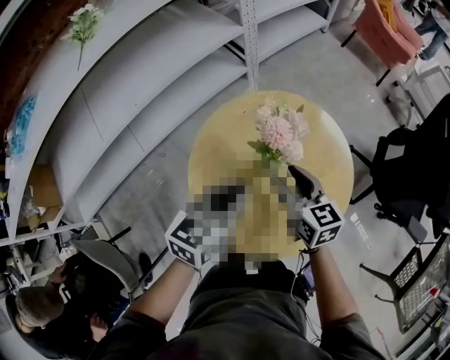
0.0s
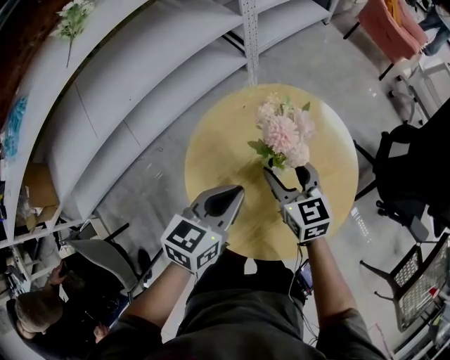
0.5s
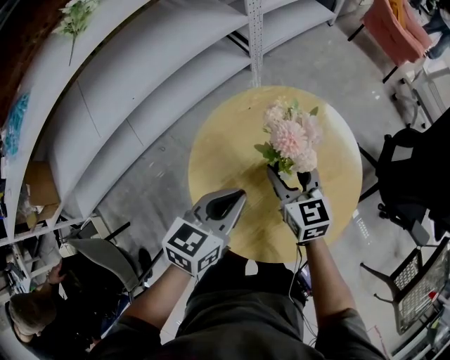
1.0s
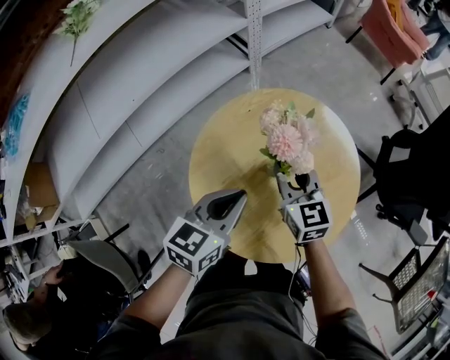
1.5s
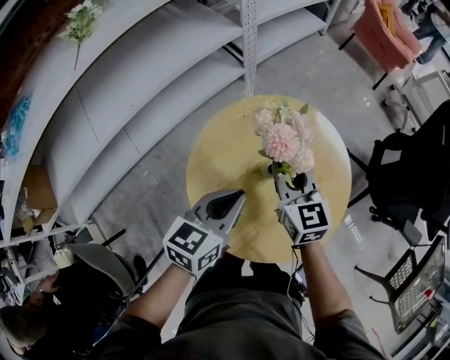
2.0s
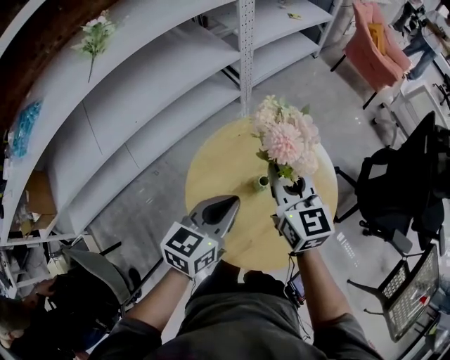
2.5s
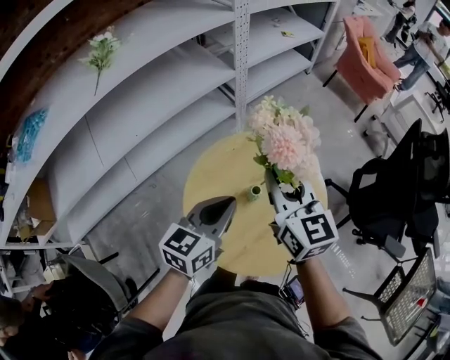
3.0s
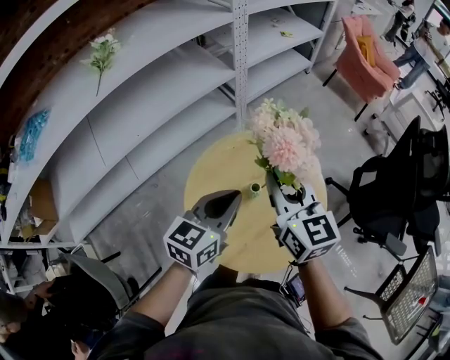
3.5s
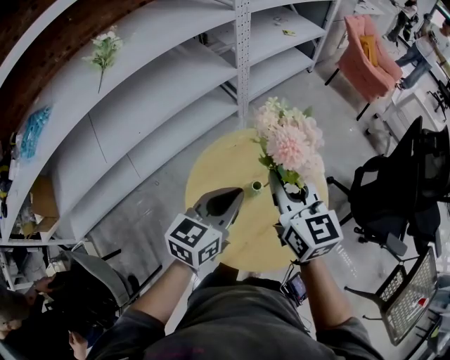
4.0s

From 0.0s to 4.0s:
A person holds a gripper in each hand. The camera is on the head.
From 0.0s to 2.0s: The right gripper changes place by roughly 5 cm, and closes up.
From 2.0s to 4.0s: The left gripper heads upward, covering about 10 cm. Meanwhile the right gripper goes approximately 15 cm upward.

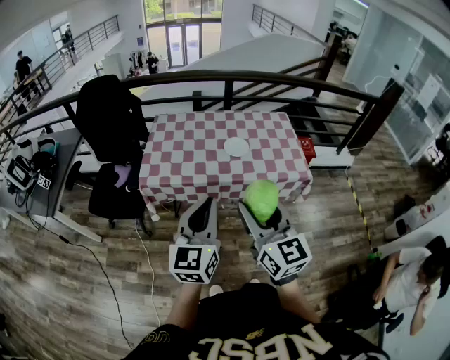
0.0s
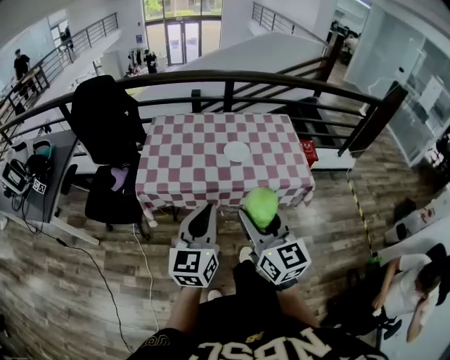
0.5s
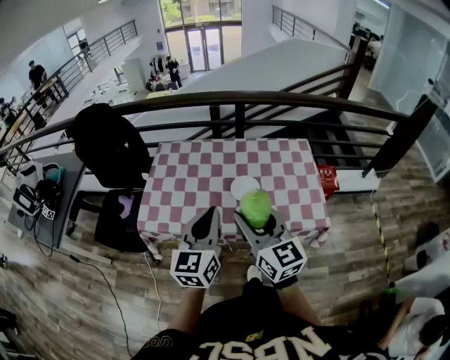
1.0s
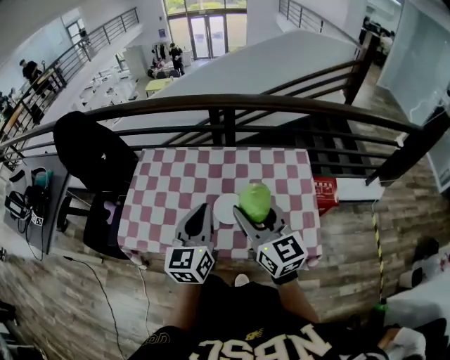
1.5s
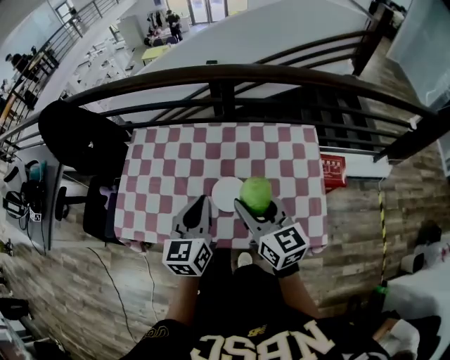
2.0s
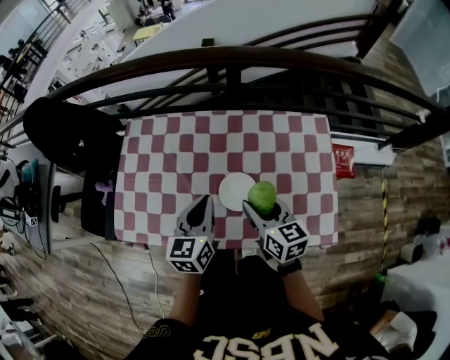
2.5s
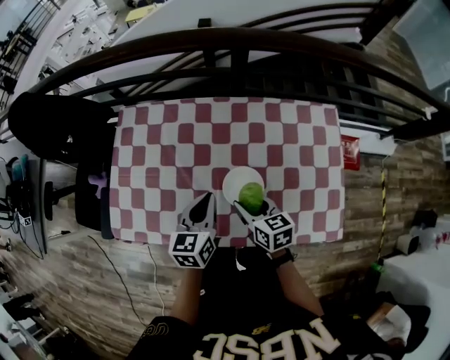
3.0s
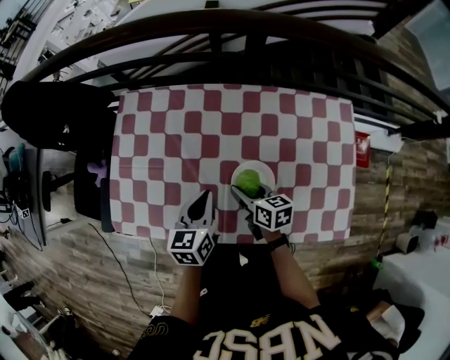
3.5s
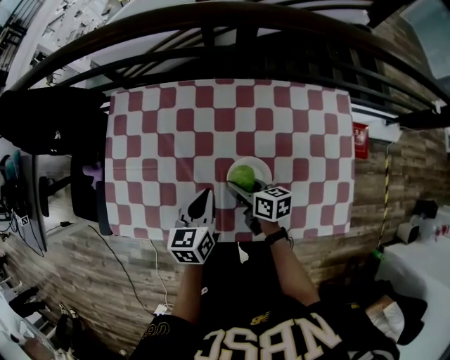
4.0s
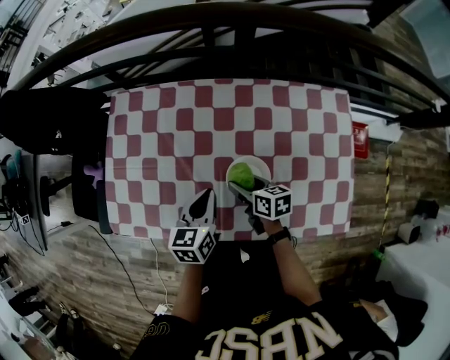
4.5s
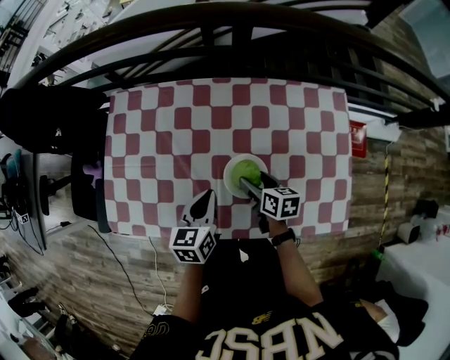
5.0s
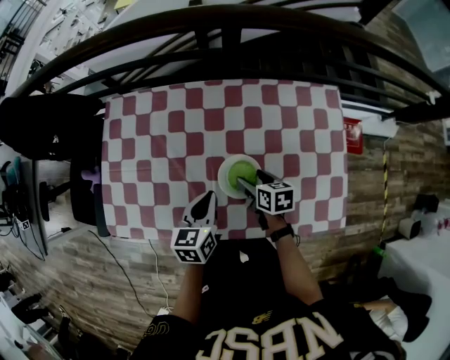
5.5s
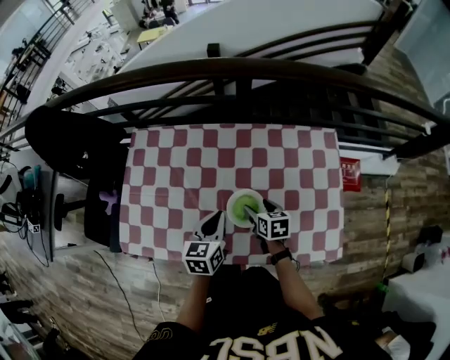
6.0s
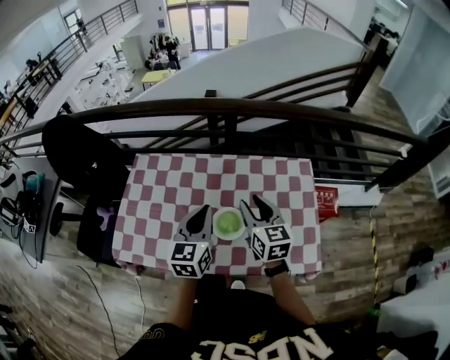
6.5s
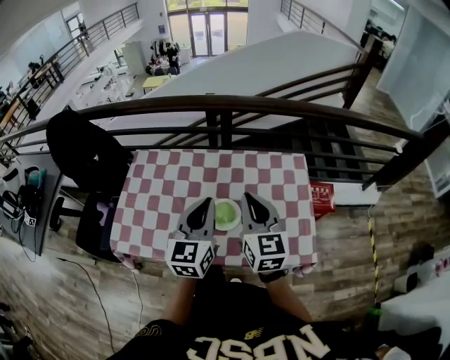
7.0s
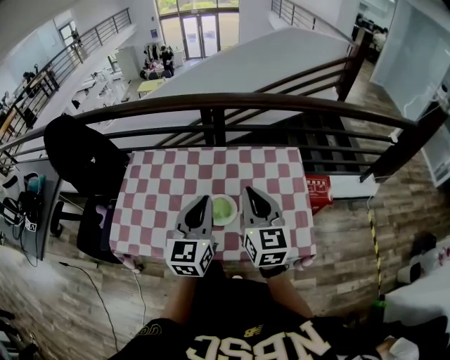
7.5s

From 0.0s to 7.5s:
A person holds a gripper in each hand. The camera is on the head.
From 0.0s to 2.0s: Both grippers are carried forward and to the right, about 50 cm. The left gripper turns by approximately 20 degrees. Meanwhile the right gripper changes its angle by about 20 degrees.
From 2.0s to 4.0s: The right gripper moves downward, roughly 30 cm, and changes its angle by some 40 degrees. The left gripper heads downward, covering approximately 20 cm, and changes its angle by approximately 20 degrees.
From 4.0s to 5.5s: The right gripper is displaced to the right by about 10 cm, and opens up.
From 5.5s to 7.5s: Both grippers move upward, roughly 30 cm. The right gripper points its fingers about 40 degrees further upward, and closes, while the left gripper turns by about 40 degrees.

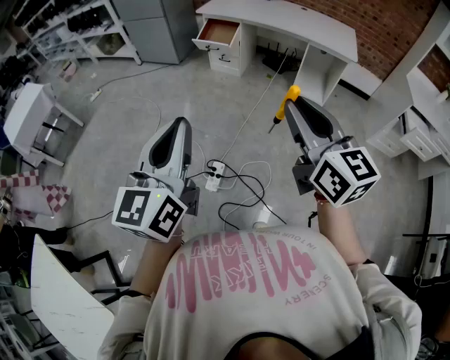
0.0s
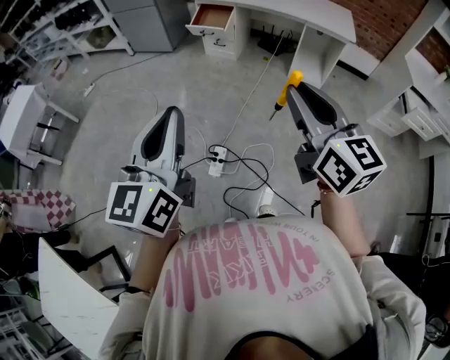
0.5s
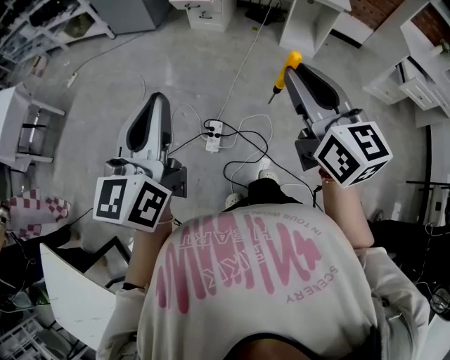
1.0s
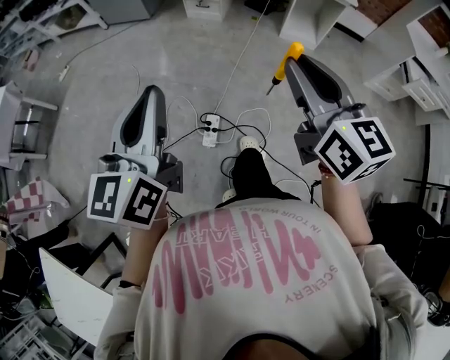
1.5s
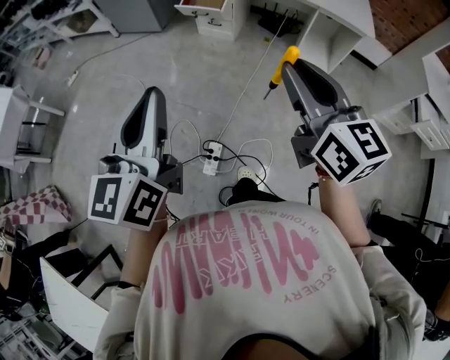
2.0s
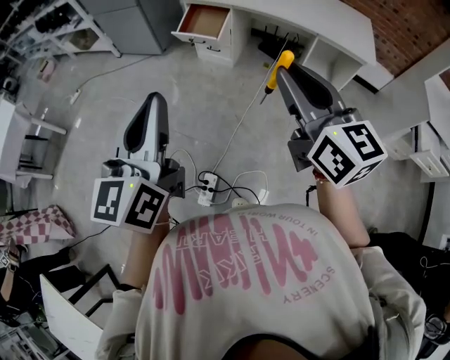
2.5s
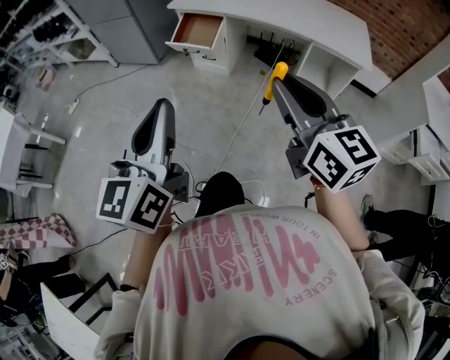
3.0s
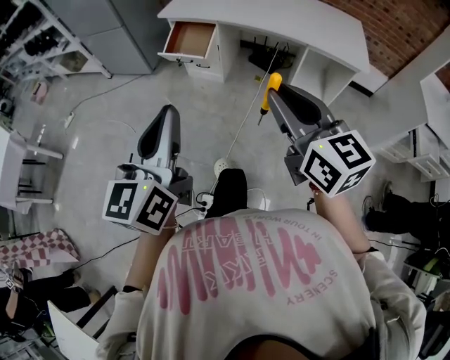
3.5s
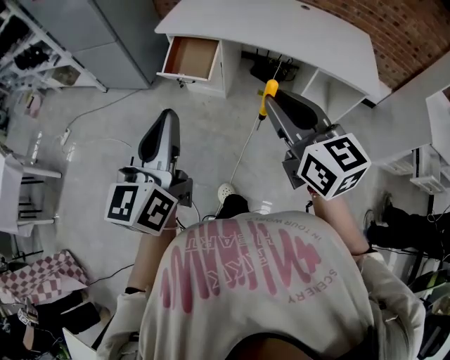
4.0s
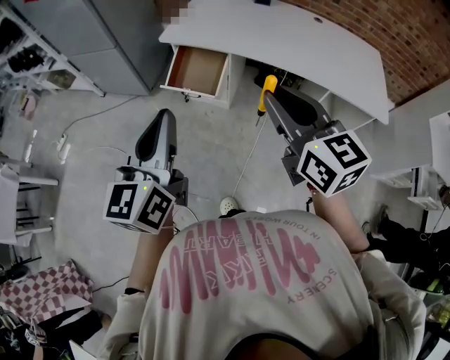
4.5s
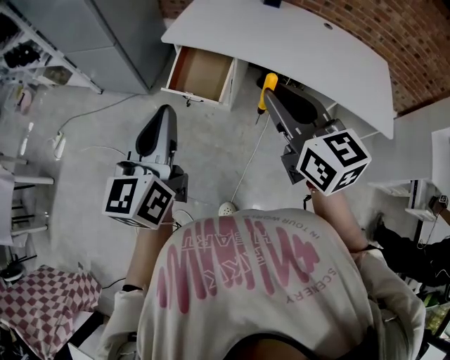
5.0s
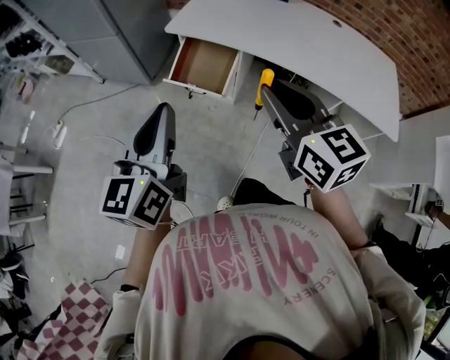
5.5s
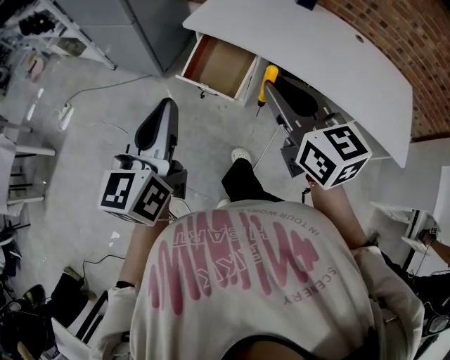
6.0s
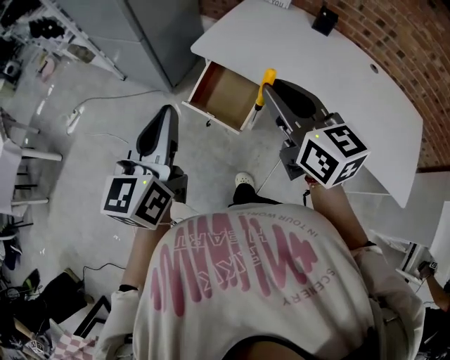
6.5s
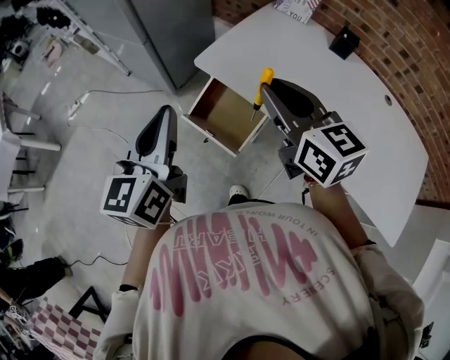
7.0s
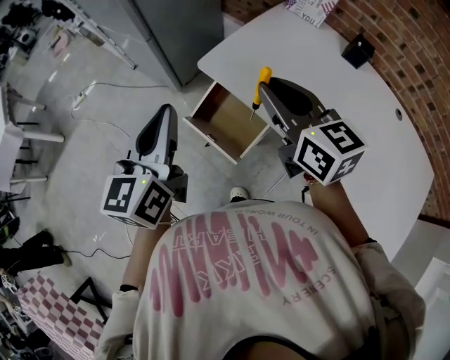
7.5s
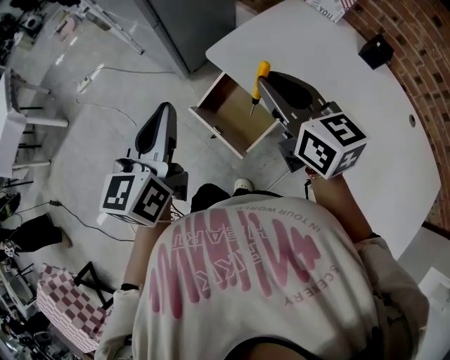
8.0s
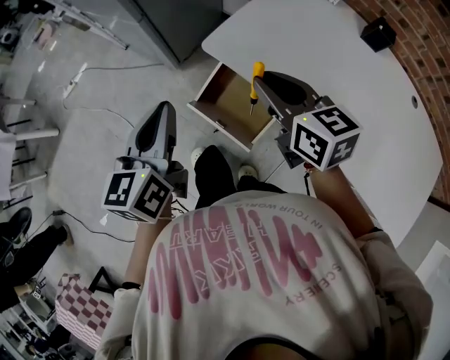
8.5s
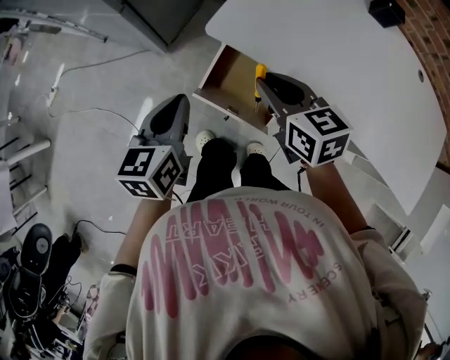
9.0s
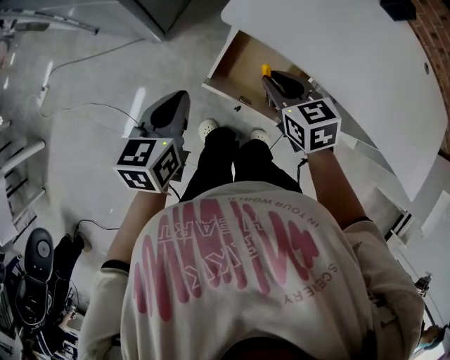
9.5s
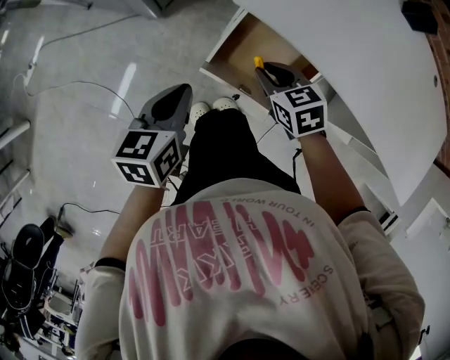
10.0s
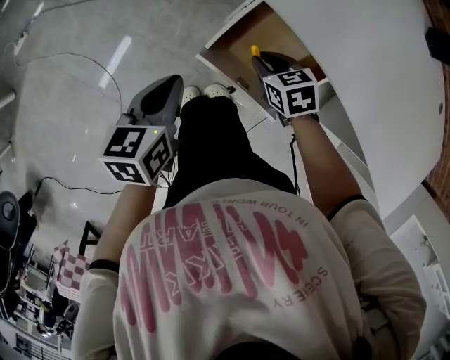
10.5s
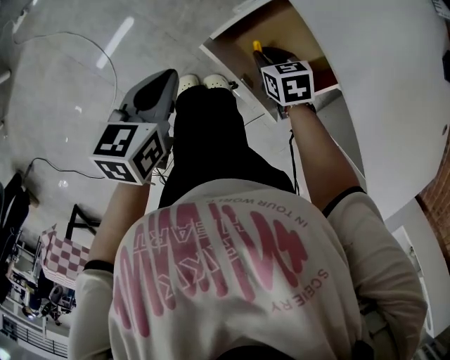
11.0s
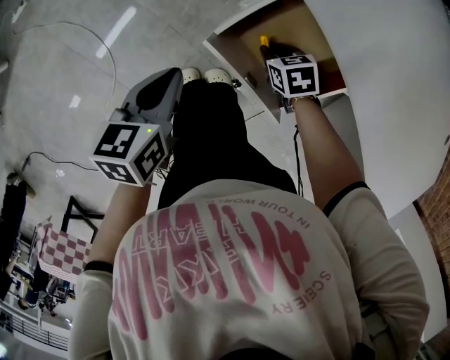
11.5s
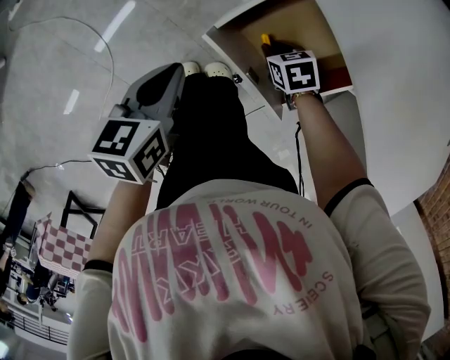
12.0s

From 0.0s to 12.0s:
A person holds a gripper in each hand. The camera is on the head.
From 0.0s to 2.0s: Both grippers move forward, about 20 cm.
From 2.0s to 4.0s: Both grippers travel together forward, about 35 cm.
From 4.0s to 6.0s: Both grippers travel together forward, approximately 25 cm.
From 6.0s to 8.0s: The two grippers go some 30 cm forward. The left gripper swivels about 20 degrees. The right gripper swivels approximately 20 degrees.
From 8.0s to 10.0s: The left gripper goes roughly 30 cm downward and to the left, and turns by about 40 degrees, while the right gripper is displaced downward by approximately 35 cm, and points its fingers approximately 40 degrees further downward.
From 10.0s to 12.0s: The left gripper travels downward by about 10 cm; the right gripper shifts approximately 20 cm downward, and turns by approximately 20 degrees.

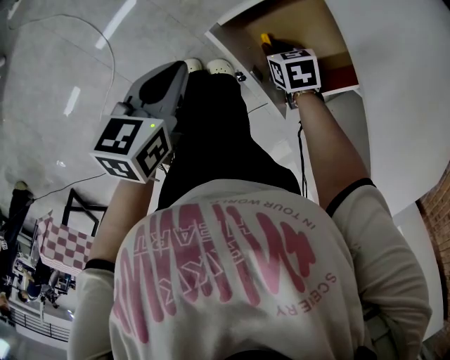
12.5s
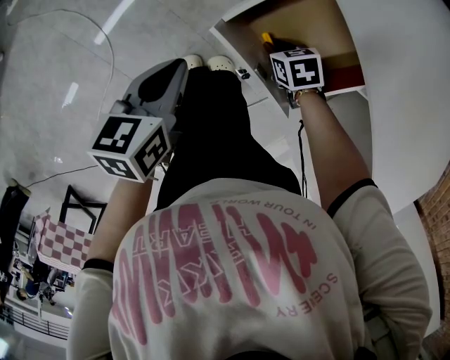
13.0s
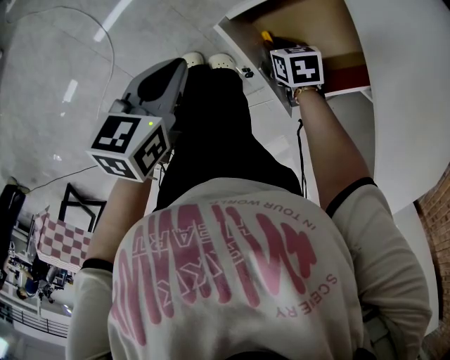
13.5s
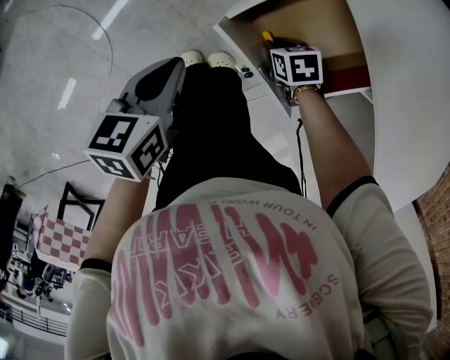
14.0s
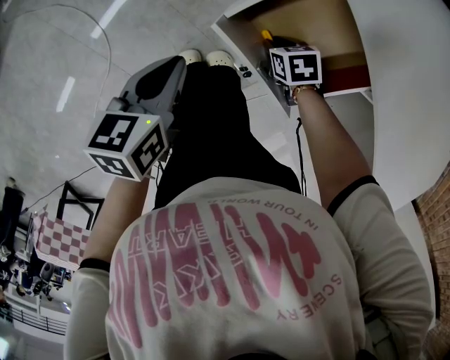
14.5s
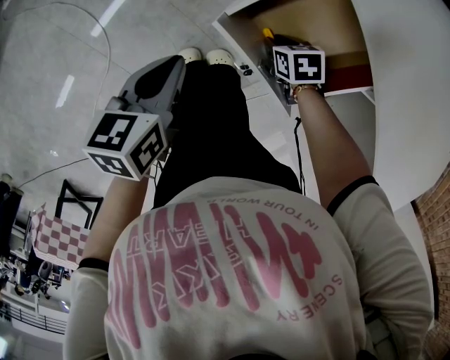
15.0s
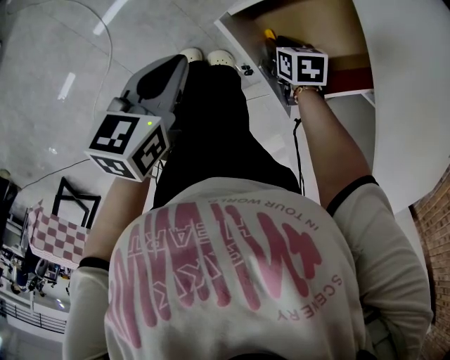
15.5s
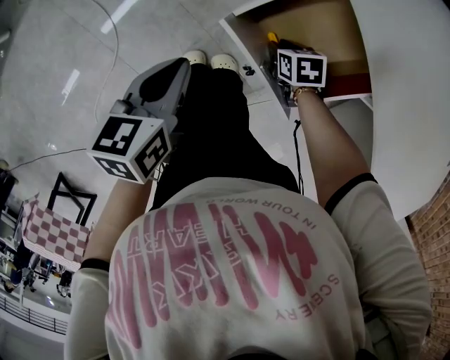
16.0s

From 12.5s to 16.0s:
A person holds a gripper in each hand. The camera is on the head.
From 12.5s to 16.0s: The grippers make only small movements.
